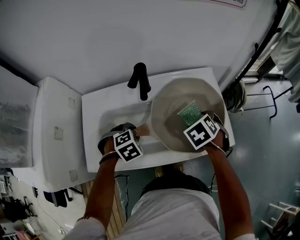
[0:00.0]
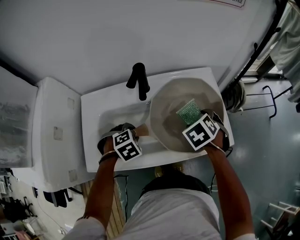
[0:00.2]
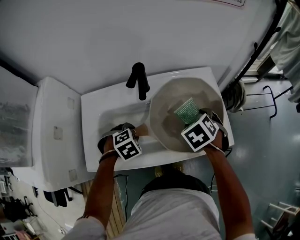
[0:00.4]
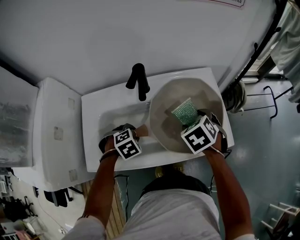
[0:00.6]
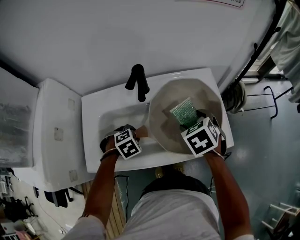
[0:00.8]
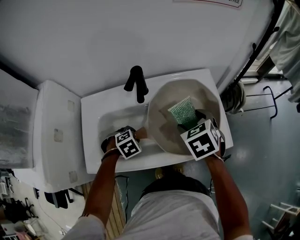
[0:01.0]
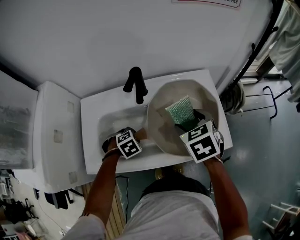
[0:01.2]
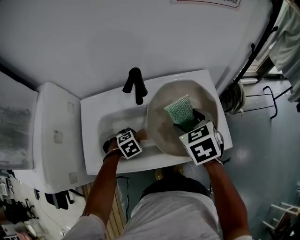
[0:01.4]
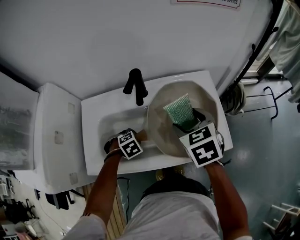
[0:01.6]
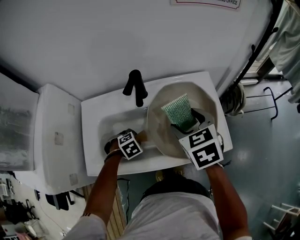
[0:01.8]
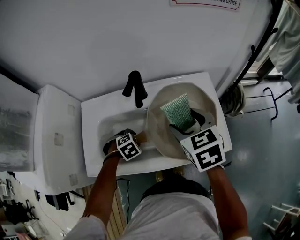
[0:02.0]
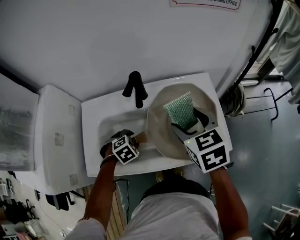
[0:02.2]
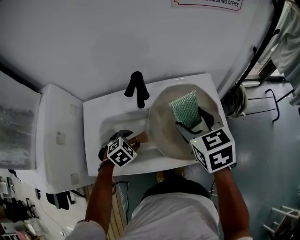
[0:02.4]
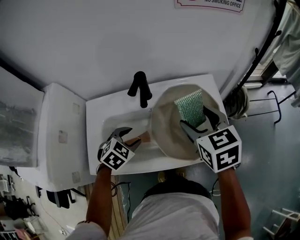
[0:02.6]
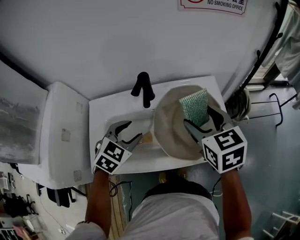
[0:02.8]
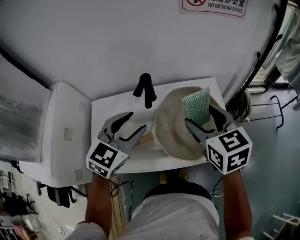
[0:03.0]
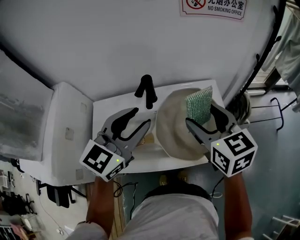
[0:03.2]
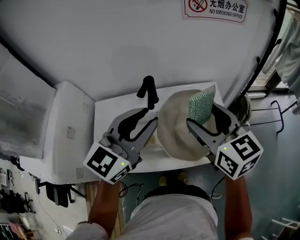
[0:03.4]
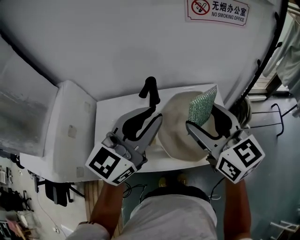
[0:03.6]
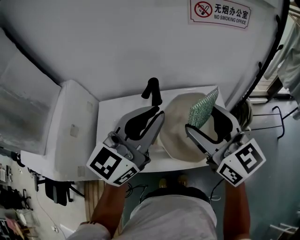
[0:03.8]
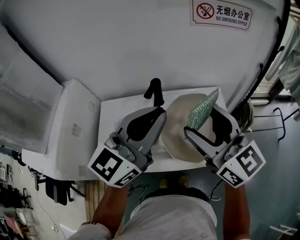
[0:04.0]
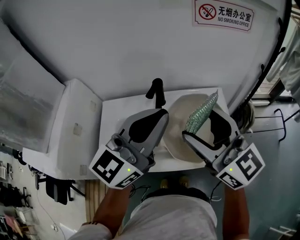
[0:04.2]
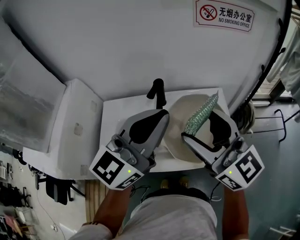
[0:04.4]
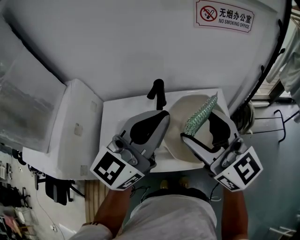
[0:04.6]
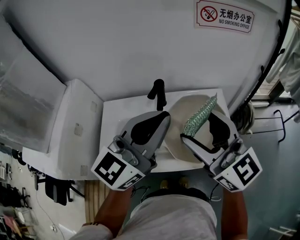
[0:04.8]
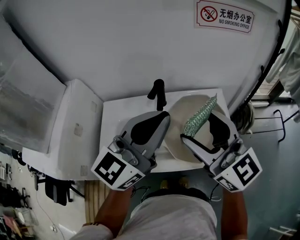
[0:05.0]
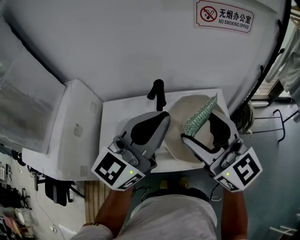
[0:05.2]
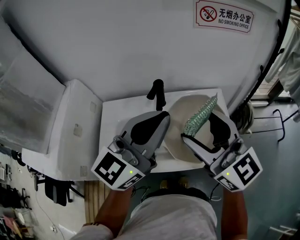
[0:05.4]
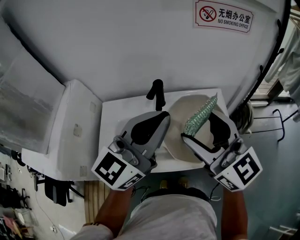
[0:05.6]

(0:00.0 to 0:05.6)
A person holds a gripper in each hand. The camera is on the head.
0:00.0 - 0:01.4: The right gripper moves upward, about 10 cm, and changes its angle by some 30 degrees, while the left gripper moves downward, about 5 cm.
0:01.4 - 0:02.8: The right gripper travels upward by about 10 cm, while the left gripper heads upward, covering some 20 cm, tips its fingers upward by about 40 degrees, and opens its fingers.
0:02.8 - 0:04.2: The right gripper moves upward and backward, approximately 15 cm, and tilts its fingers about 40 degrees upward; the left gripper is displaced upward by roughly 25 cm, points its fingers about 50 degrees further upward, and closes up.
0:04.2 - 0:05.6: The grippers stay close to where they were, moving slightly.

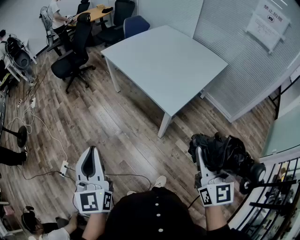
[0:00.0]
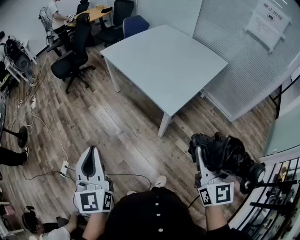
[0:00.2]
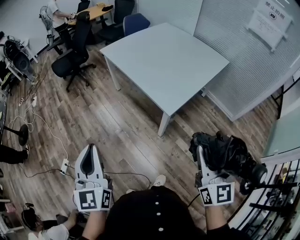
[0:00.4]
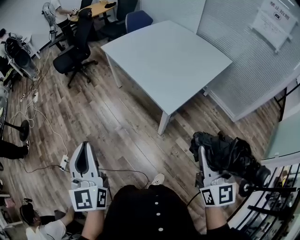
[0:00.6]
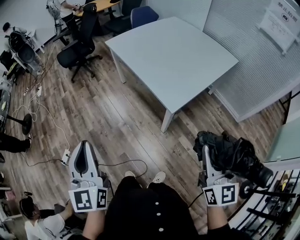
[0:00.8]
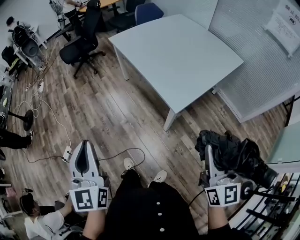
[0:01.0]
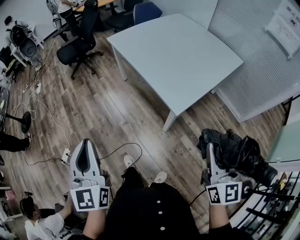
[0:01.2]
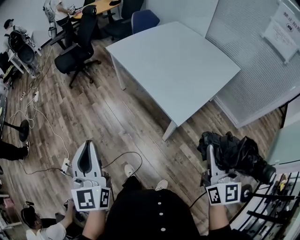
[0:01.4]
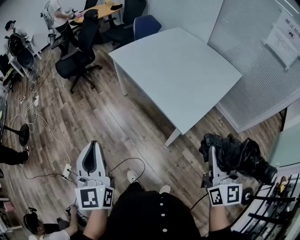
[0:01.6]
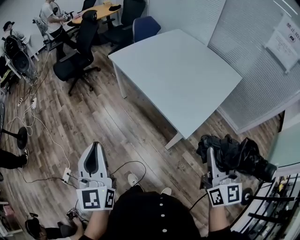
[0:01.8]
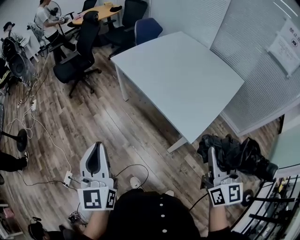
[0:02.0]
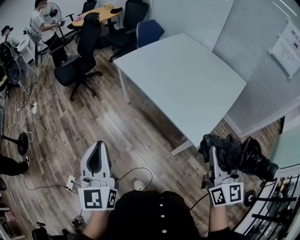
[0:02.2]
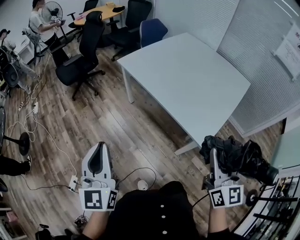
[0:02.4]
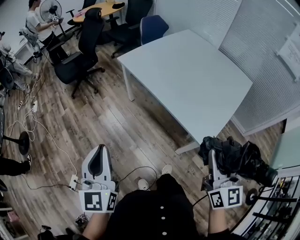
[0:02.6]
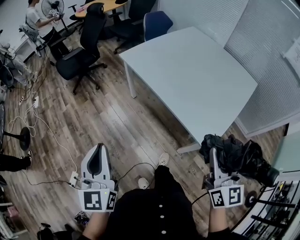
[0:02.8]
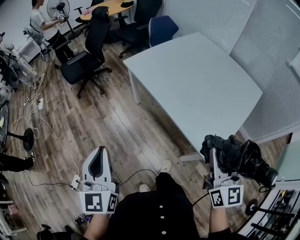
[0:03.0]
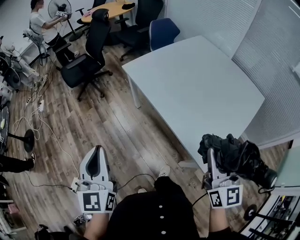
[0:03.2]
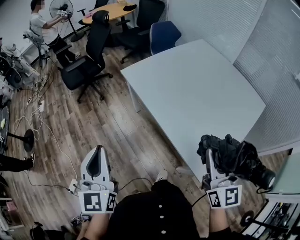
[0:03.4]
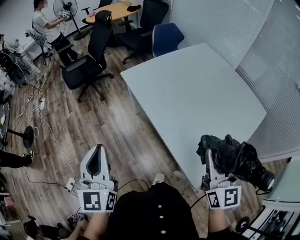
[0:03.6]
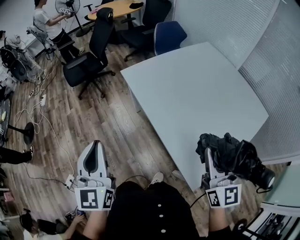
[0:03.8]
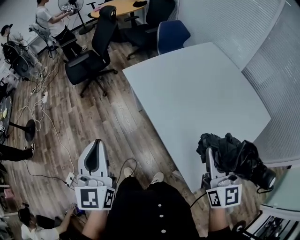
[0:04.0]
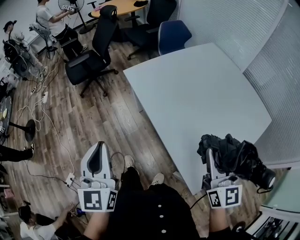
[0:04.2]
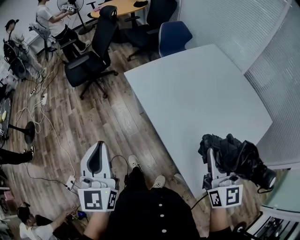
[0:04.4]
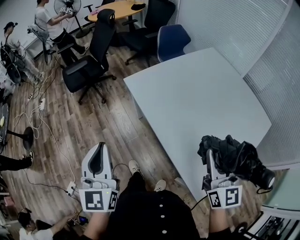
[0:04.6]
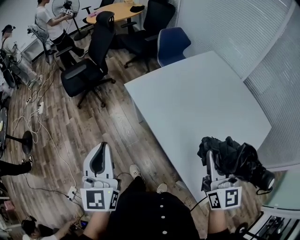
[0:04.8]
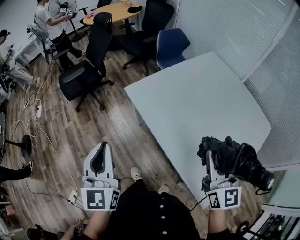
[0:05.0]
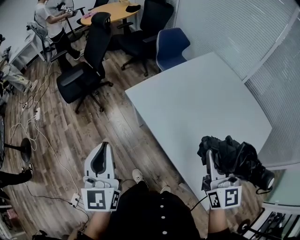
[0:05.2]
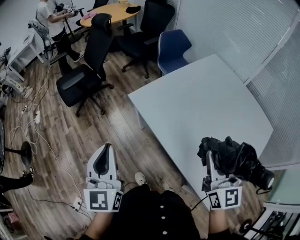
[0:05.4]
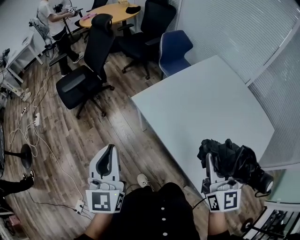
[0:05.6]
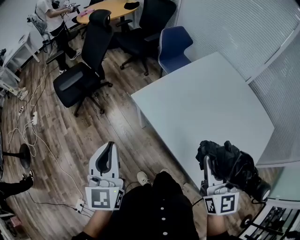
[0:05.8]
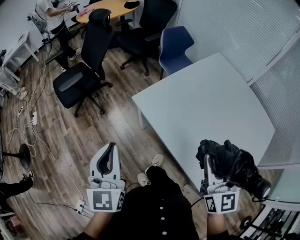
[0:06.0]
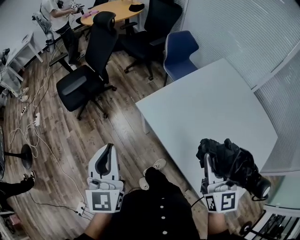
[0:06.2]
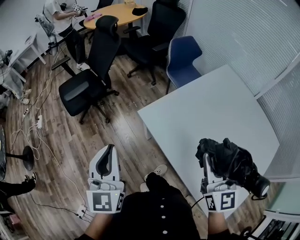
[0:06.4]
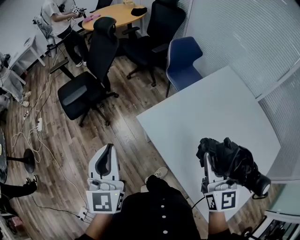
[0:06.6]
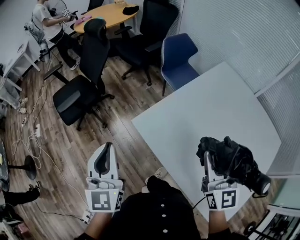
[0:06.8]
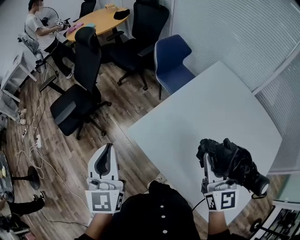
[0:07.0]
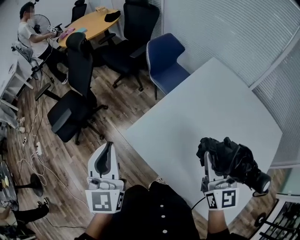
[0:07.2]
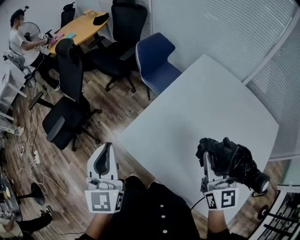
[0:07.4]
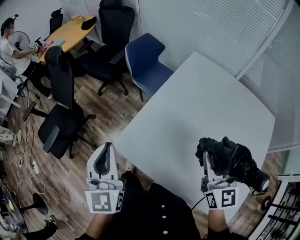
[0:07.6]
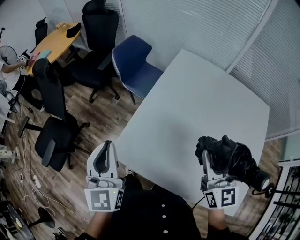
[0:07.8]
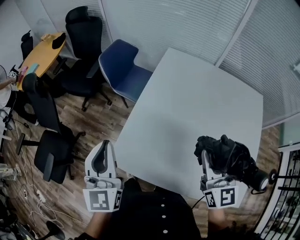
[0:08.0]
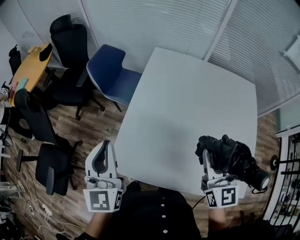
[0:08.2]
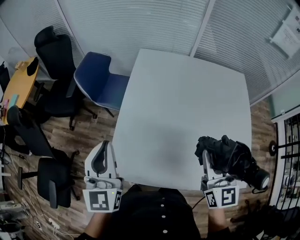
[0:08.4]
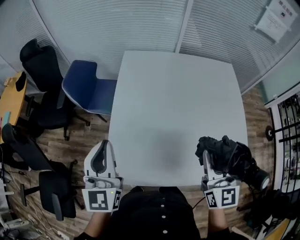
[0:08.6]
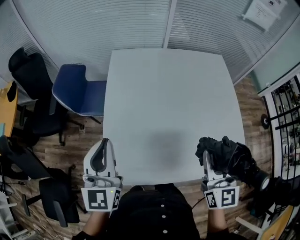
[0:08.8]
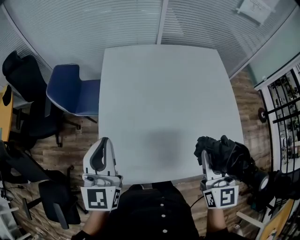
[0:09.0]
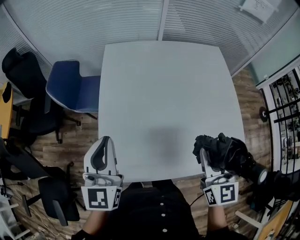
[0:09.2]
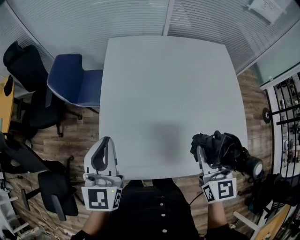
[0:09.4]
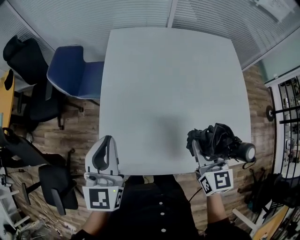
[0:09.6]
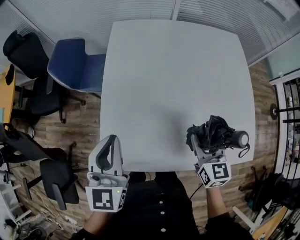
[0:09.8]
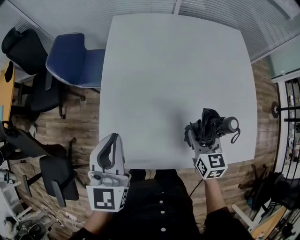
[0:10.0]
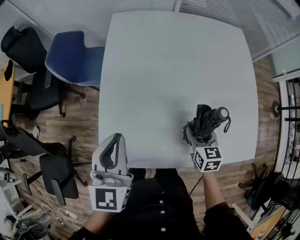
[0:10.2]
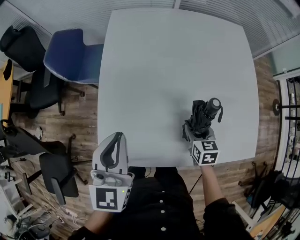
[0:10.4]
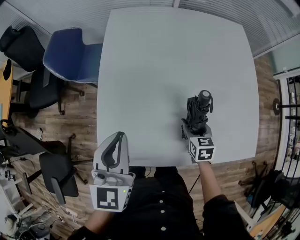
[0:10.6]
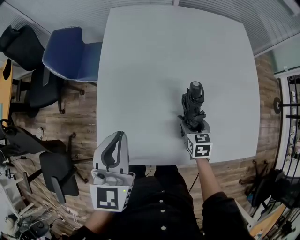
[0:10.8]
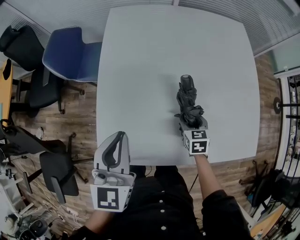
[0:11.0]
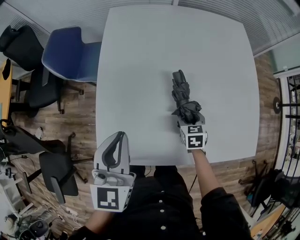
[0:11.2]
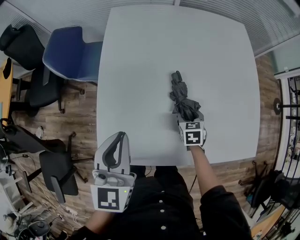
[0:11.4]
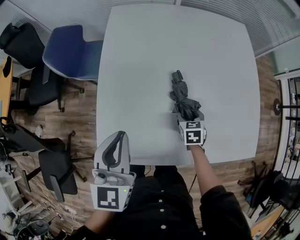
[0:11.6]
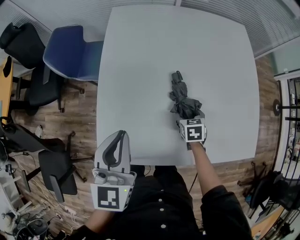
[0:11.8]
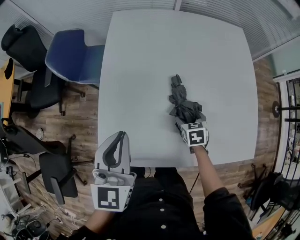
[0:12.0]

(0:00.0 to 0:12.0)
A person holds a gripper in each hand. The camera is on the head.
0:00.0 - 0:01.6: The two grippers go approximately 10 cm forward.
0:01.6 - 0:03.0: The grippers both shift forward and to the left by some 20 cm.
0:03.0 - 0:04.4: The right gripper moves forward, roughly 20 cm; the left gripper travels forward and to the right by about 15 cm.
0:04.4 - 0:06.0: Both grippers travel together forward and to the left, approximately 25 cm.
0:06.0 - 0:07.6: The right gripper shifts roughly 20 cm forward and to the right, while the left gripper heads forward, covering some 25 cm.
0:07.6 - 0:09.0: The right gripper shifts by roughly 10 cm, and swivels approximately 40 degrees. Meanwhile the left gripper shifts by about 15 cm, and changes its angle by approximately 40 degrees.
0:09.0 - 0:10.4: The right gripper is displaced downward by some 30 cm, and tilts its fingers some 40 degrees downward; the left gripper moves downward, approximately 10 cm.
0:10.4 - 0:12.0: The right gripper changes place by approximately 5 cm.

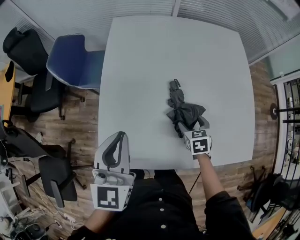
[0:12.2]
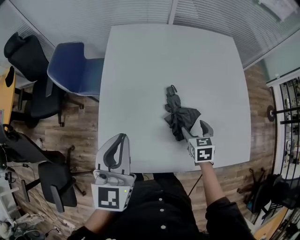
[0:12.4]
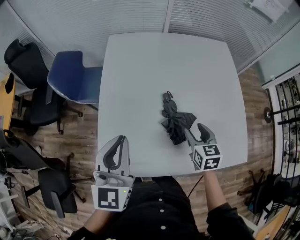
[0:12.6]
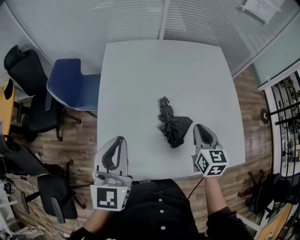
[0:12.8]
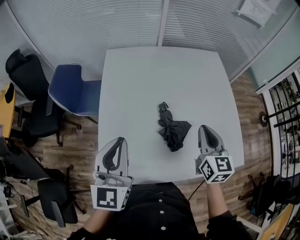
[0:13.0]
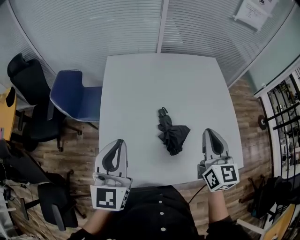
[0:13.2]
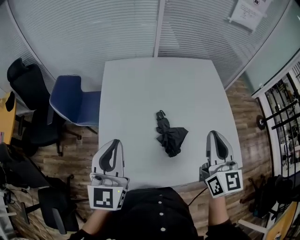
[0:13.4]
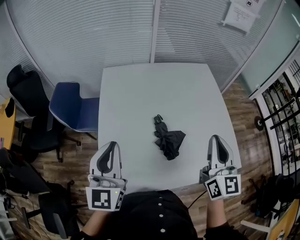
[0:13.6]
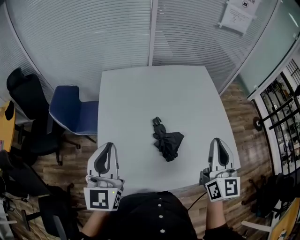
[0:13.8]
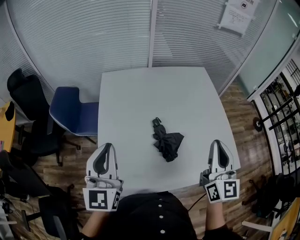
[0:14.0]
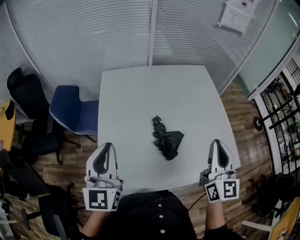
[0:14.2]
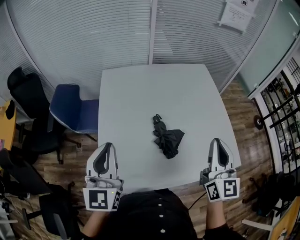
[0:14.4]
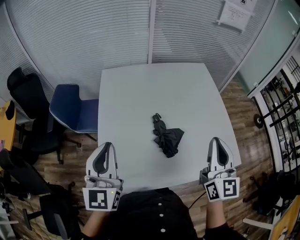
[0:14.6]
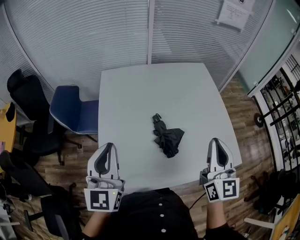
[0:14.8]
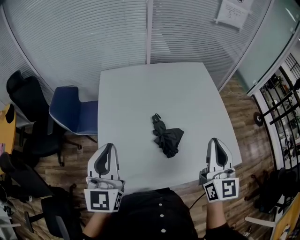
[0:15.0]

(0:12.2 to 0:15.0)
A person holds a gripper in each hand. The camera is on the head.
0:12.2 - 0:13.6: The left gripper moves upward, approximately 10 cm. Meanwhile the right gripper is displaced upward by roughly 35 cm, tilts its fingers roughly 50 degrees upward, and closes up.
0:13.6 - 0:15.0: There are only small adjustments of the grippers.

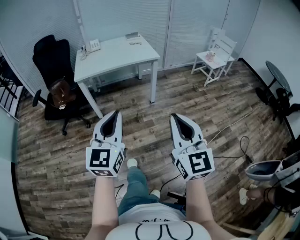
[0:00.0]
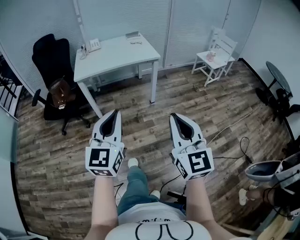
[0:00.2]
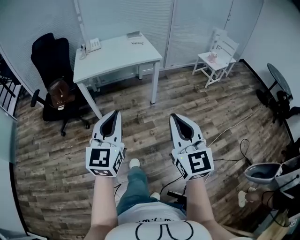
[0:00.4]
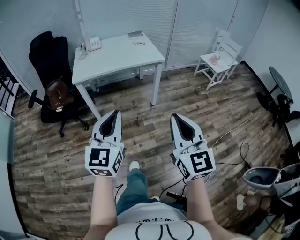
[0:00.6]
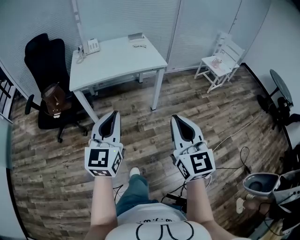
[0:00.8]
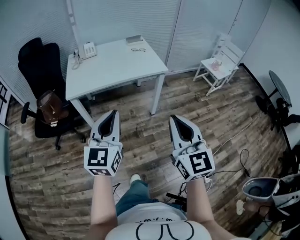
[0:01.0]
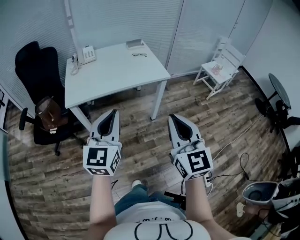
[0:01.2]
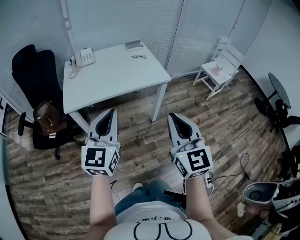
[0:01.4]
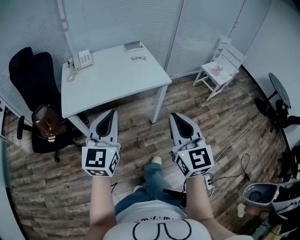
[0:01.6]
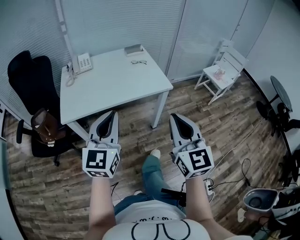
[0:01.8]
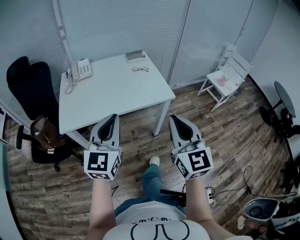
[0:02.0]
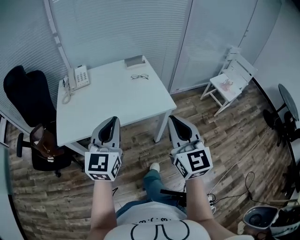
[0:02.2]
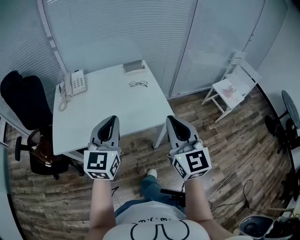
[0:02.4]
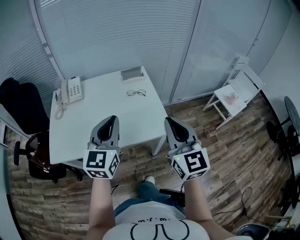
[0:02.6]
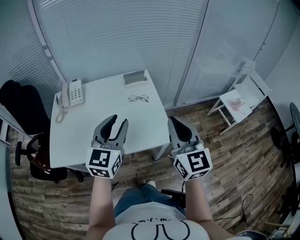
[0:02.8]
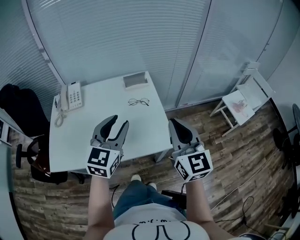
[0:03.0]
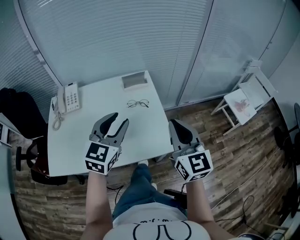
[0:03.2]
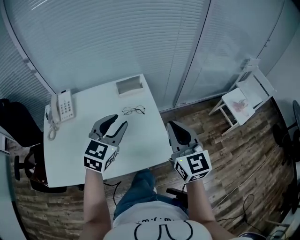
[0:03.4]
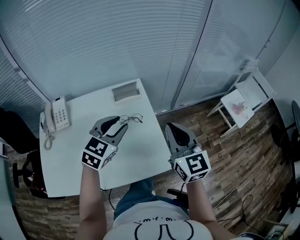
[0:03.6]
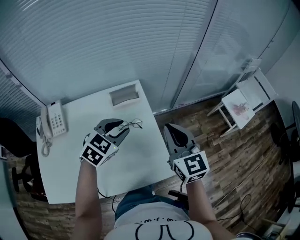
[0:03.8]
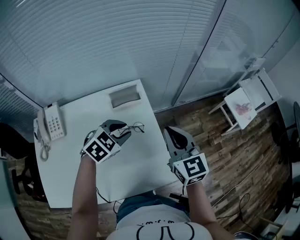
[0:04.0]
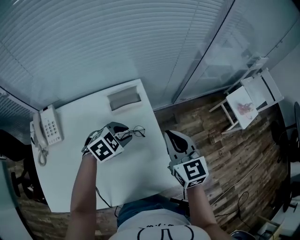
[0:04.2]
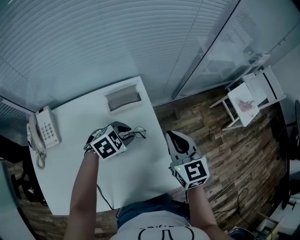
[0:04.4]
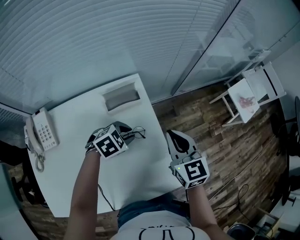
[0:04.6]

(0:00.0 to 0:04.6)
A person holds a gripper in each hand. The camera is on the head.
0:00.0 - 0:01.6: Both grippers are carried forward, roughly 40 cm.
0:01.6 - 0:03.0: The pair of grippers is taken forward, roughly 50 cm. The left gripper opens up.
0:03.0 - 0:04.6: The right gripper shifts by approximately 30 cm, and swivels about 20 degrees. The left gripper shifts by roughly 40 cm, and angles its fingers downward, by some 50 degrees.
